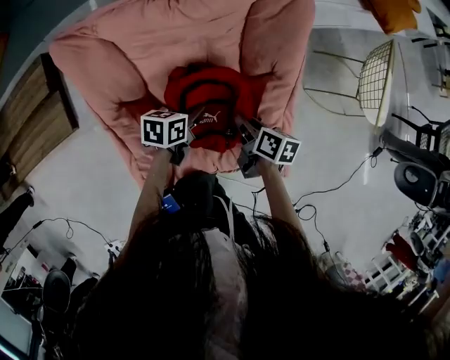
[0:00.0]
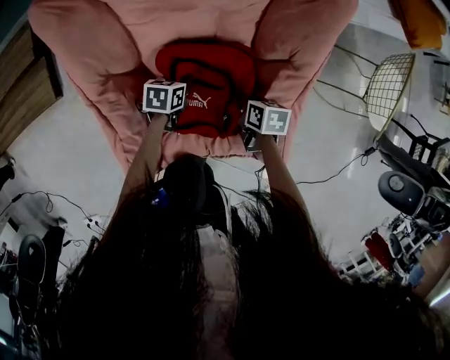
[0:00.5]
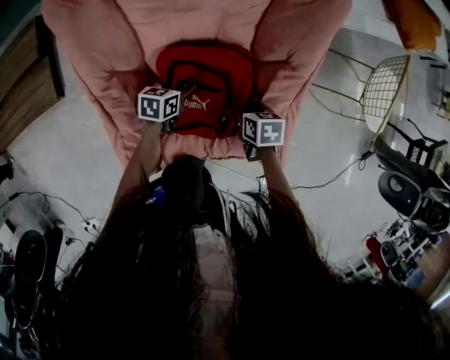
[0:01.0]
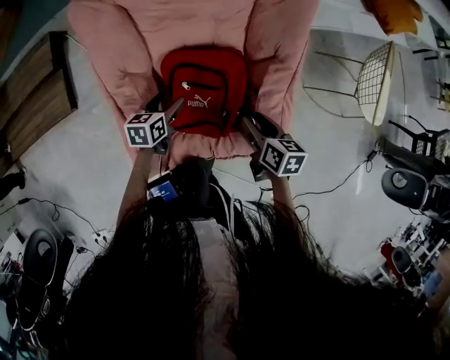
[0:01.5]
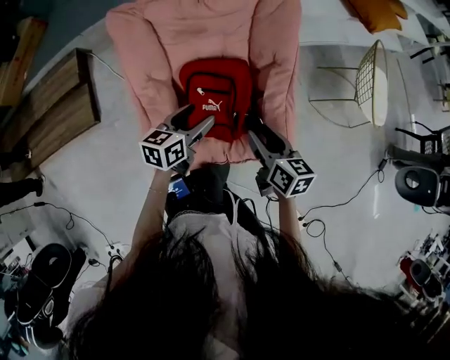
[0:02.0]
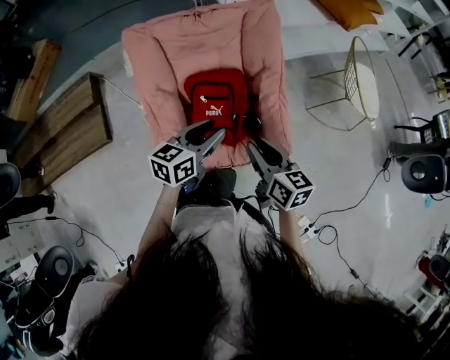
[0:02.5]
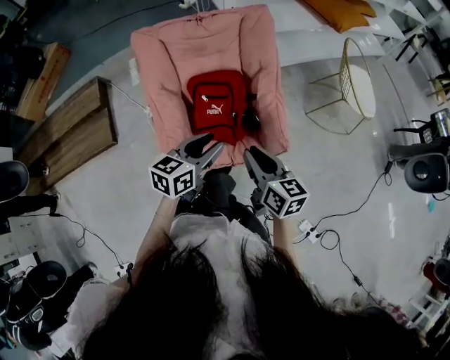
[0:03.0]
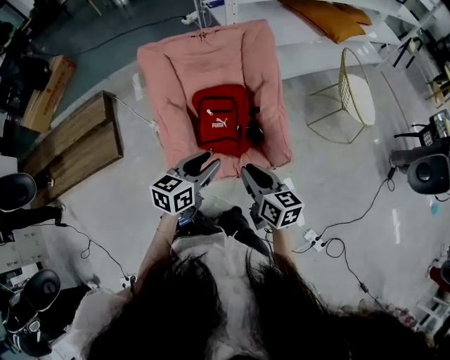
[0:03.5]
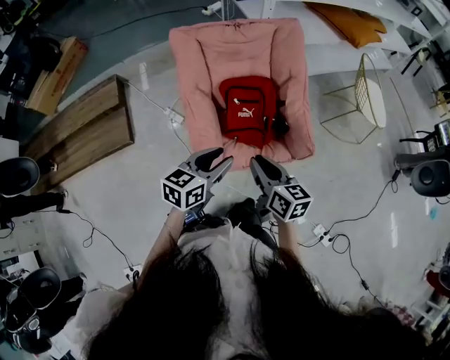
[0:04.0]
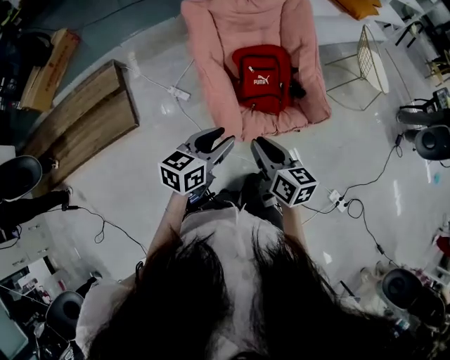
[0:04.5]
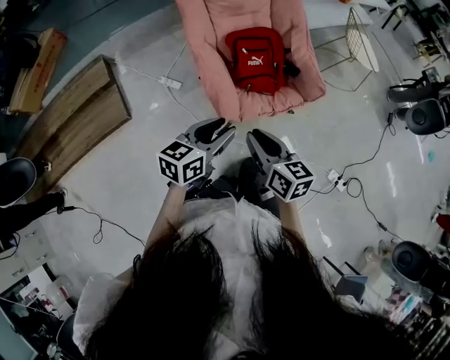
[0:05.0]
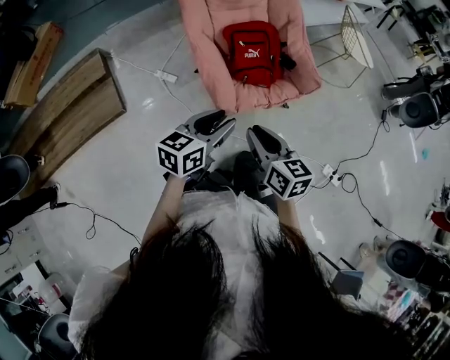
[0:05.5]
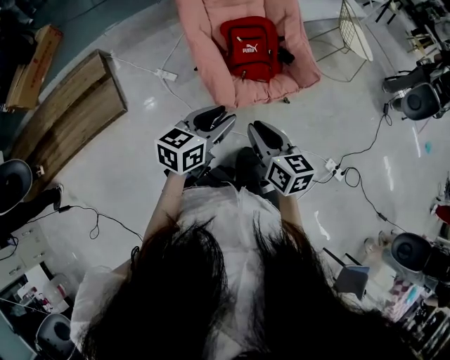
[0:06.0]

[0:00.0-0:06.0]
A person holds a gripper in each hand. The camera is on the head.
0:00.0 to 0:02.0: The grippers both shift upward and backward by some 20 cm. The left gripper changes its angle by some 20 degrees, and opens; the right gripper turns by some 30 degrees, and opens.
0:02.0 to 0:04.0: The right gripper heads backward, to the left and upward, covering roughly 25 cm, and closes up; the left gripper travels backward and upward by approximately 30 cm, and closes.
0:04.0 to 0:06.0: The grippers both shift backward and to the left by roughly 25 cm.

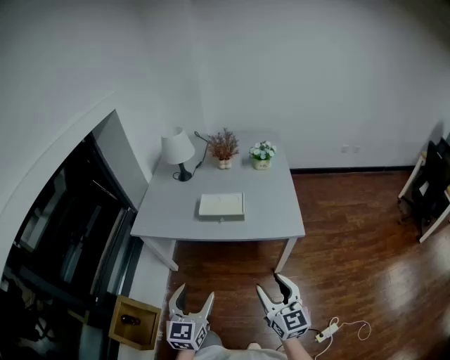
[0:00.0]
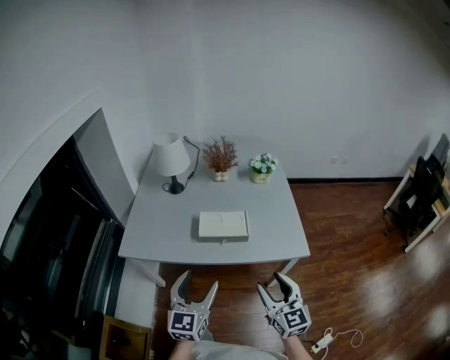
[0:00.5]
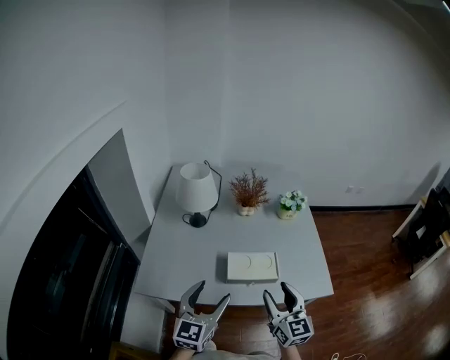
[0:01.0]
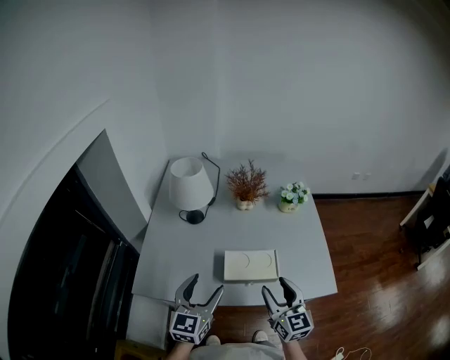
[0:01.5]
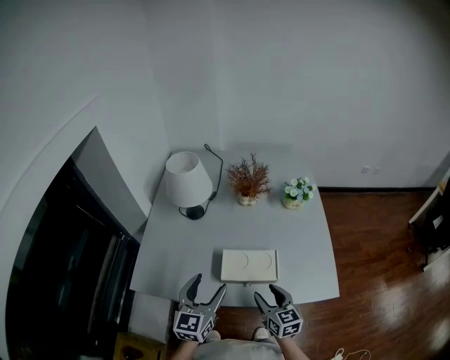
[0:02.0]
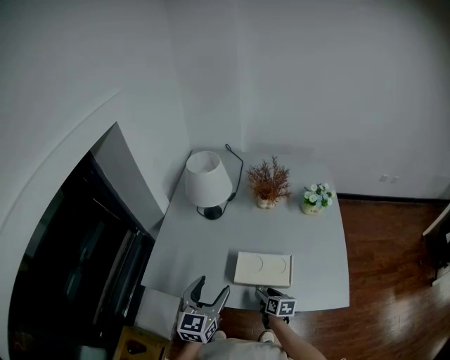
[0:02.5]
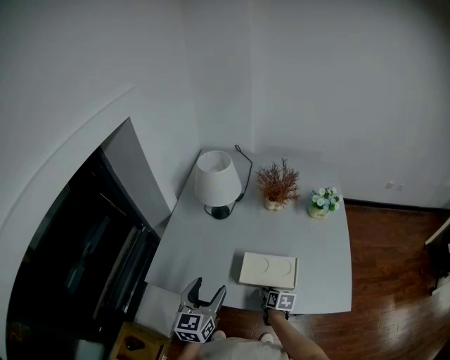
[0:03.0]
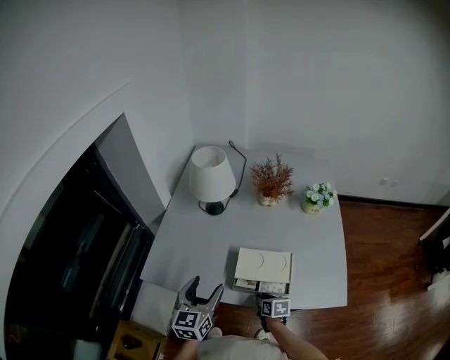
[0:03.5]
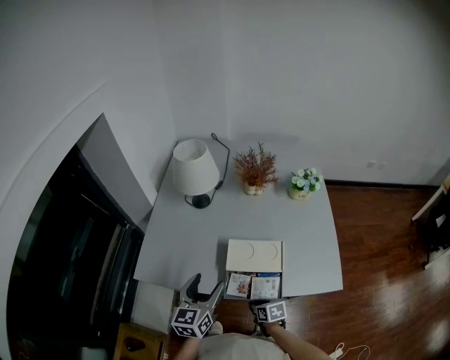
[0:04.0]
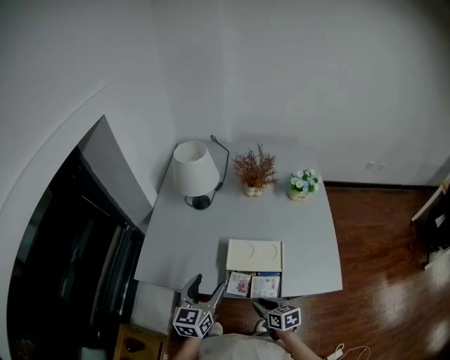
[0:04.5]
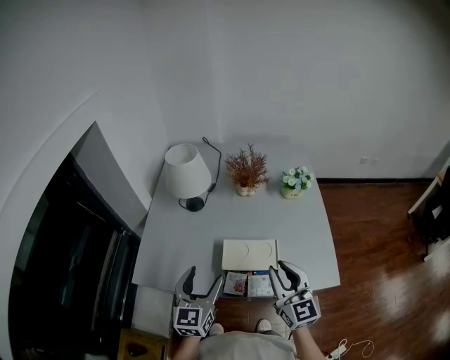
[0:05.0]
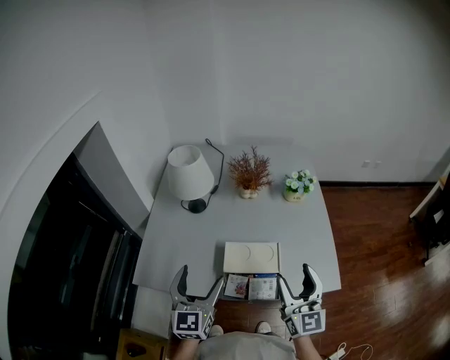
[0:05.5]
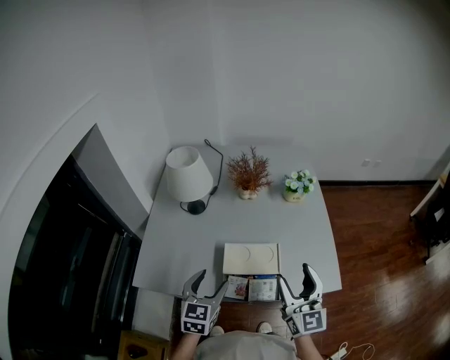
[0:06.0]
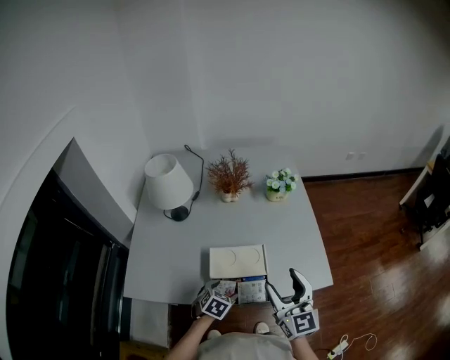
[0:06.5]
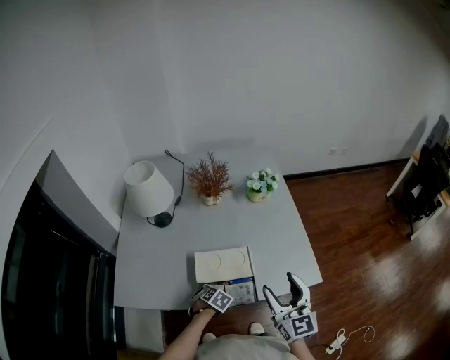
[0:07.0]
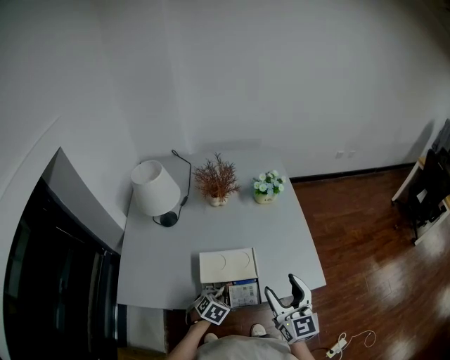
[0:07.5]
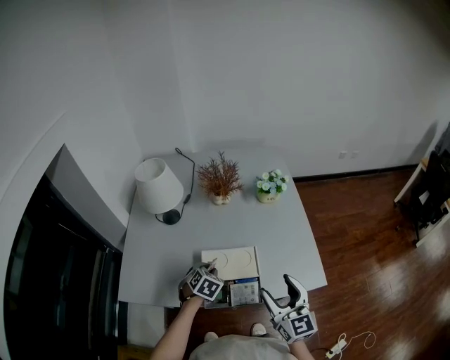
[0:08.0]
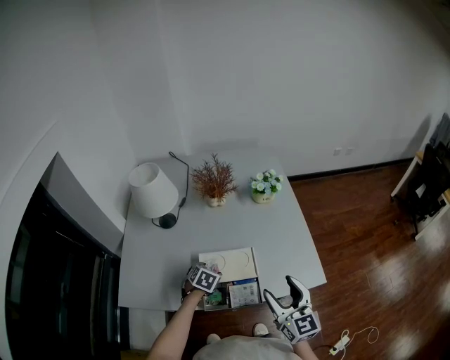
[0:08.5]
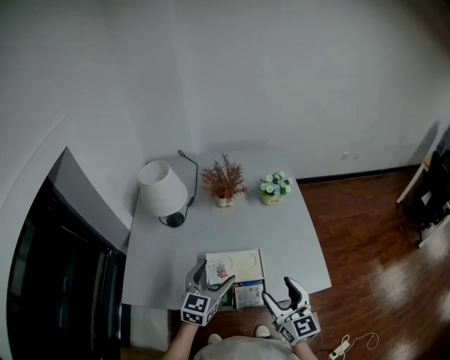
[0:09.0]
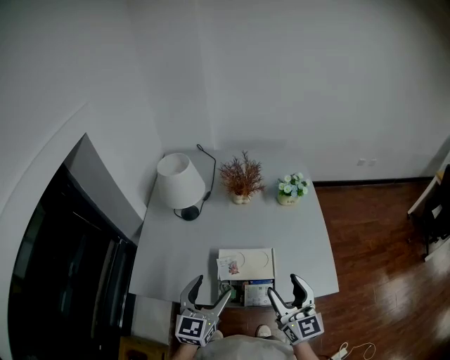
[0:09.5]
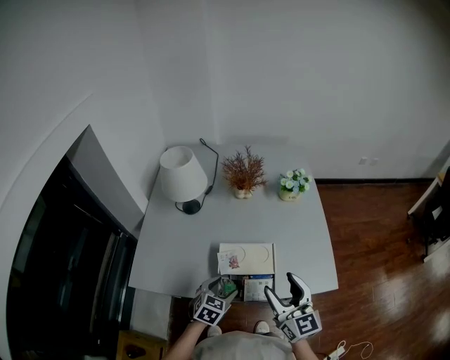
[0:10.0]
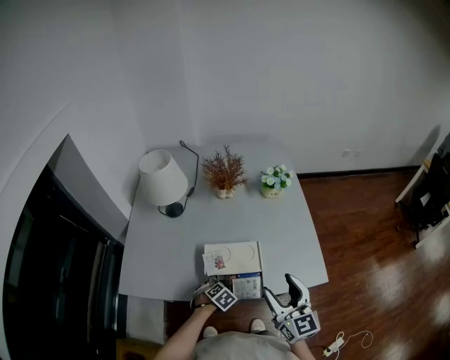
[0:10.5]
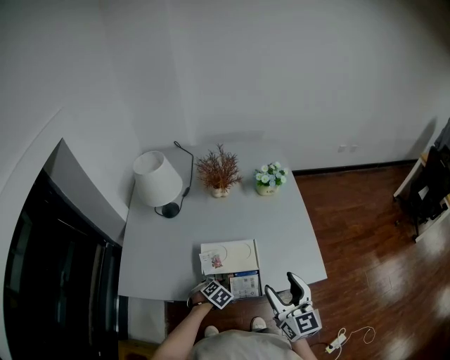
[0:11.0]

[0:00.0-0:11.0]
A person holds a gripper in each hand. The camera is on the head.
0:00.0 to 0:02.0: The left gripper is displaced forward by about 40 cm. Meanwhile the right gripper travels forward and to the left by approximately 40 cm, and changes its angle by some 20 degrees.
0:02.0 to 0:03.5: The right gripper goes some 20 cm downward, rotates about 40 degrees, and closes up. The left gripper travels to the left by roughly 5 cm.
0:03.5 to 0:05.5: The left gripper heads upward, covering approximately 10 cm; the right gripper travels upward by some 35 cm, tilts its fingers roughly 60 degrees upward, and opens its fingers.
0:05.5 to 0:07.5: The right gripper ends up some 5 cm from where it was. Meanwhile the left gripper is displaced downward by roughly 25 cm, tilts its fingers about 60 degrees downward, and closes up.
0:07.5 to 0:09.0: The left gripper swings up and down, some 20 cm each way, with 2 reversals, tips its fingers upward by roughly 50 degrees, and opens up.
0:09.0 to 0:11.0: The left gripper moves downward, some 25 cm, points its fingers roughly 60 degrees further downward, and closes up.

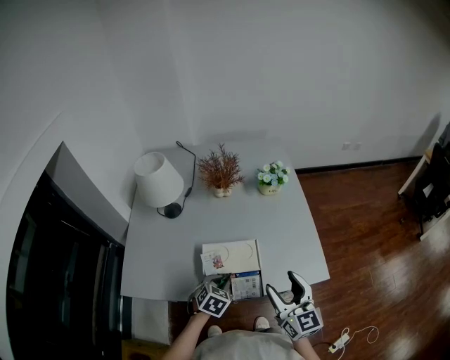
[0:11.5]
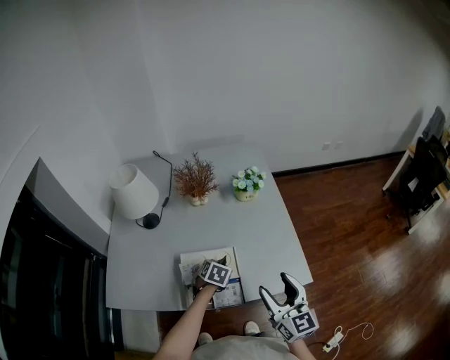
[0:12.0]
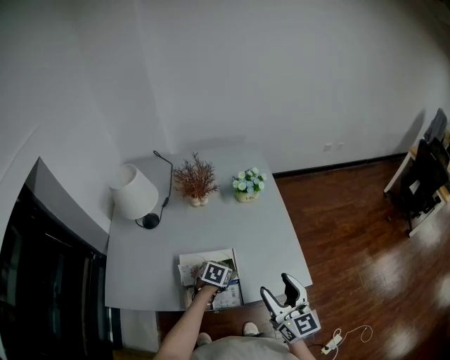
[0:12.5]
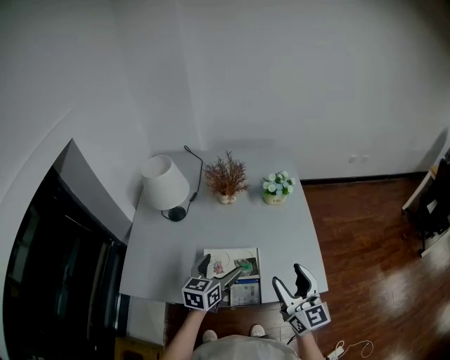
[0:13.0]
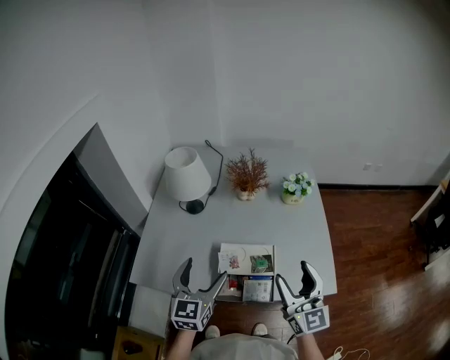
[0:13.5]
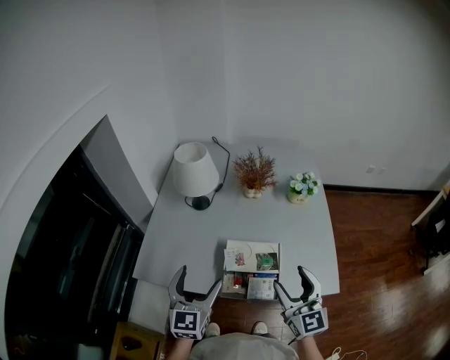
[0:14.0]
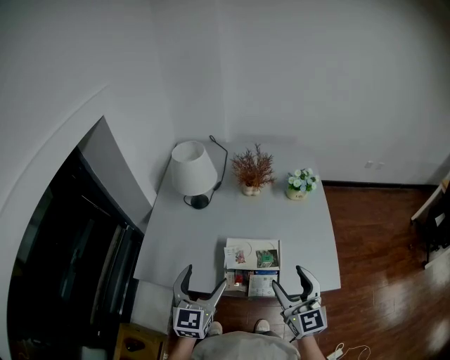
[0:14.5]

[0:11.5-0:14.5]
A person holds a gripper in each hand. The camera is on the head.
0:11.5 to 0:13.0: The left gripper moves upward and forward, roughly 15 cm, tilts its fingers approximately 30 degrees upward, and opens up; the right gripper moves approximately 5 cm.
0:13.0 to 0:14.5: The left gripper travels to the left, backward and upward by roughly 20 cm, and turns by some 30 degrees; the right gripper goes approximately 10 cm to the left.

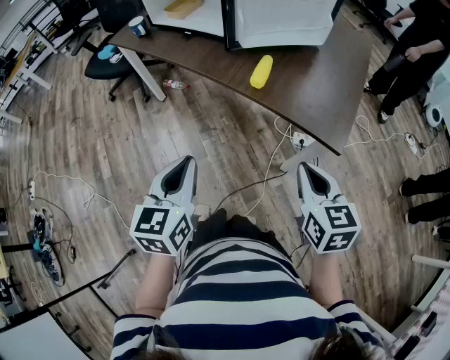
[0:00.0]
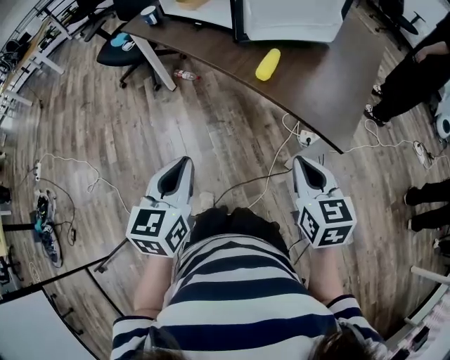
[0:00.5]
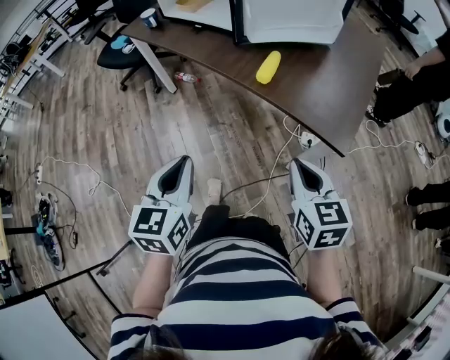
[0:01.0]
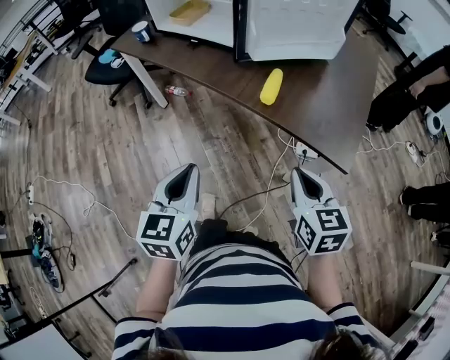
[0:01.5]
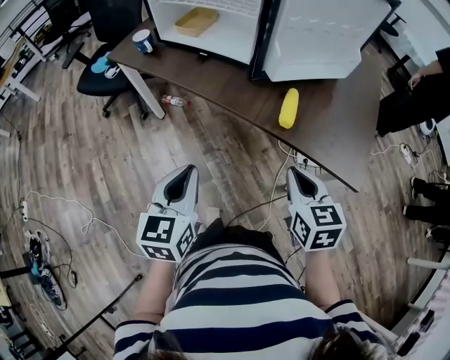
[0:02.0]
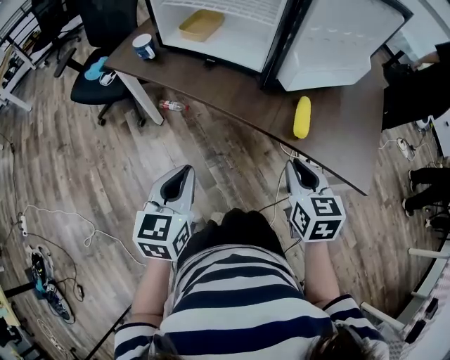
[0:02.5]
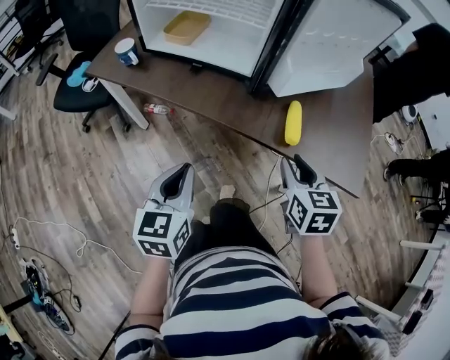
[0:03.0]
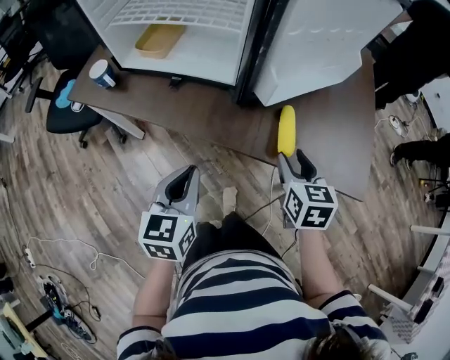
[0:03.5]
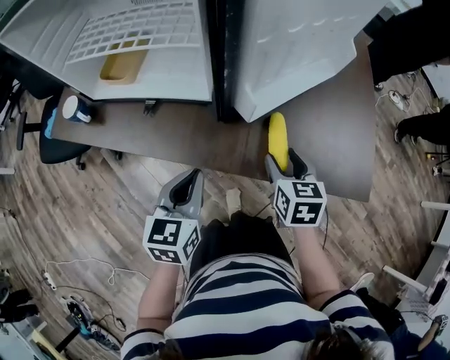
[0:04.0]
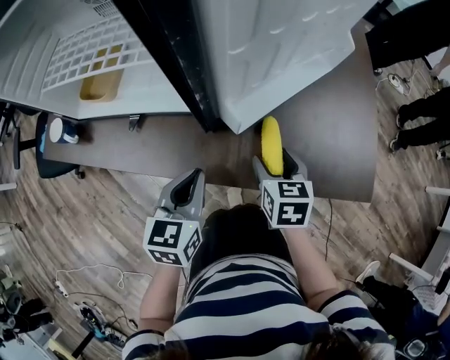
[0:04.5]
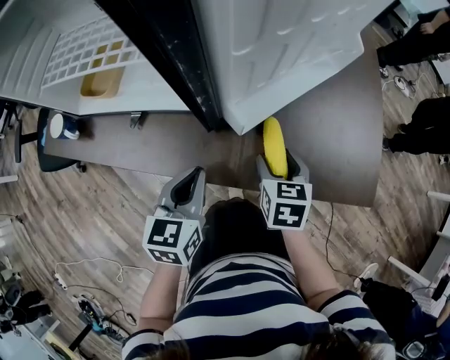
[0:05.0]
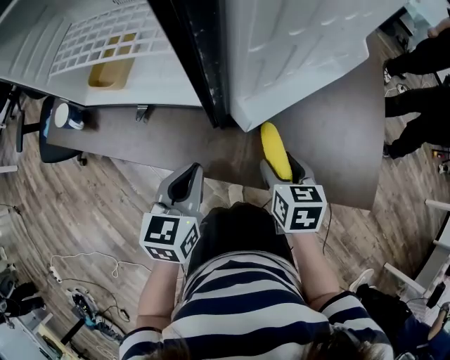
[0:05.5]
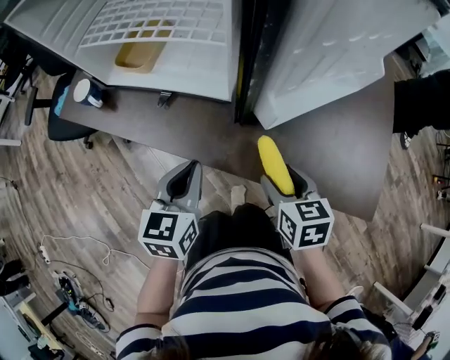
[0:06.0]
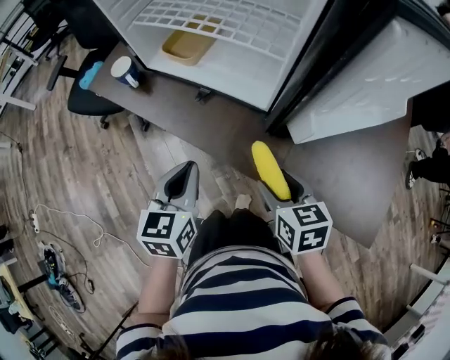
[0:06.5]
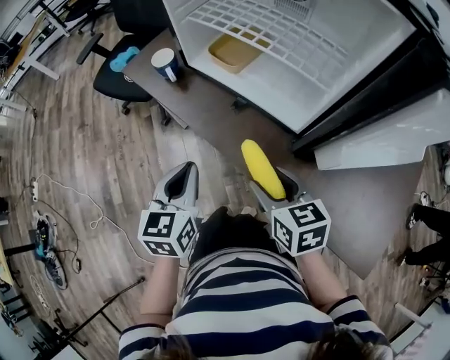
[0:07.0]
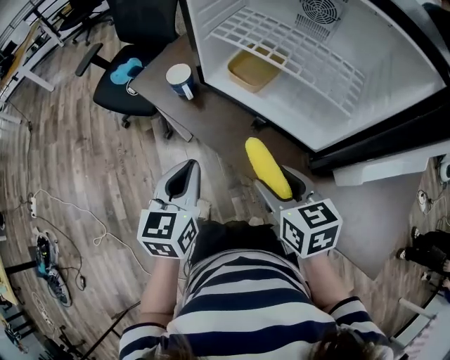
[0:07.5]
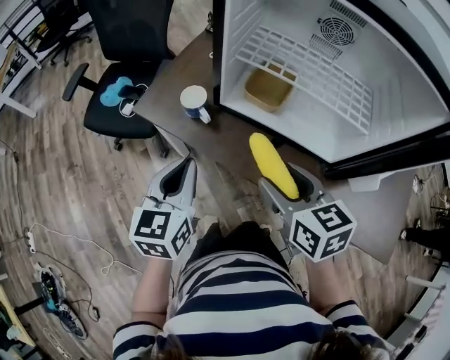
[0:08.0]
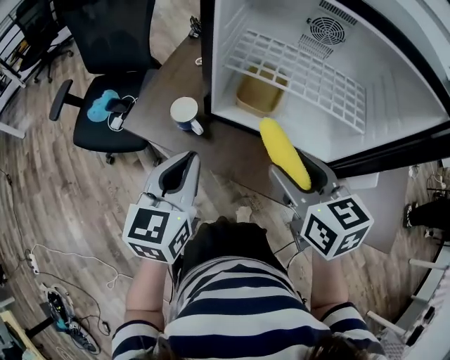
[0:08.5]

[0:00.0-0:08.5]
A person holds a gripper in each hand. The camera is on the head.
0:00.0 to 0:02.0: Both grippers travel together forward and to the left, roughly 20 cm.
0:02.0 to 0:04.0: The left gripper moves forward, roughly 25 cm, and changes its angle by some 20 degrees. The right gripper is displaced forward and downward by roughly 25 cm, swivels some 20 degrees, and opens.
0:04.0 to 0:06.5: The left gripper shifts by roughly 10 cm, and changes its angle by about 20 degrees, while the right gripper shifts by roughly 10 cm, and rotates approximately 30 degrees.
0:06.5 to 0:08.5: The grippers both shift to the left, forward and upward by about 30 cm.
